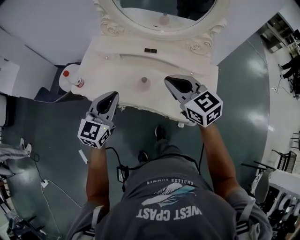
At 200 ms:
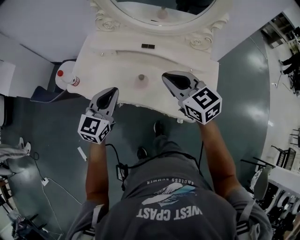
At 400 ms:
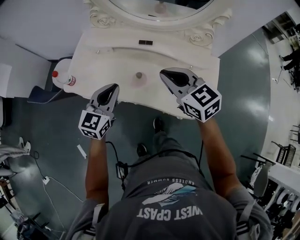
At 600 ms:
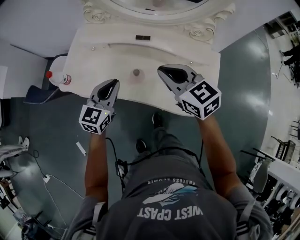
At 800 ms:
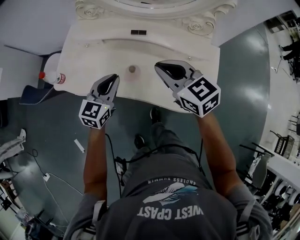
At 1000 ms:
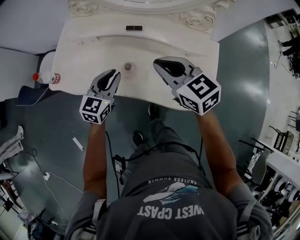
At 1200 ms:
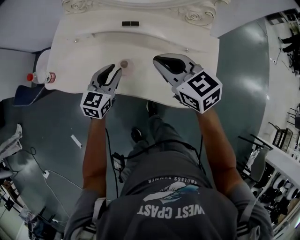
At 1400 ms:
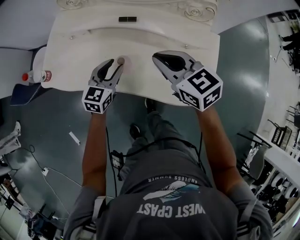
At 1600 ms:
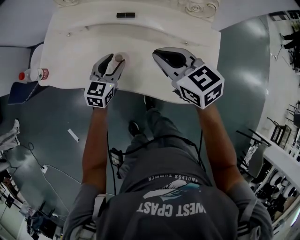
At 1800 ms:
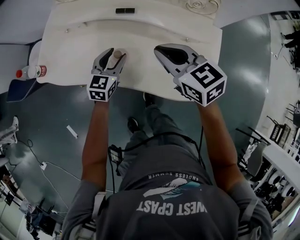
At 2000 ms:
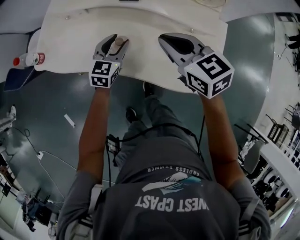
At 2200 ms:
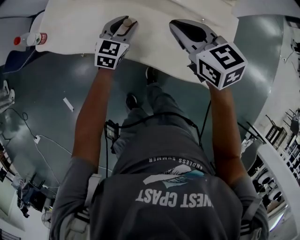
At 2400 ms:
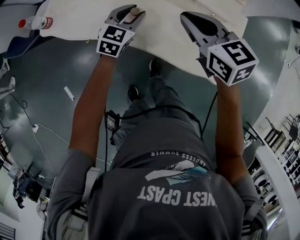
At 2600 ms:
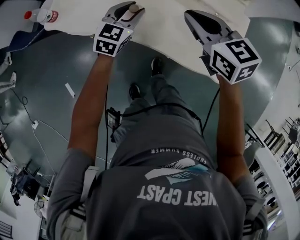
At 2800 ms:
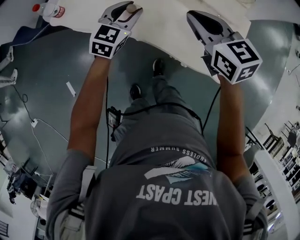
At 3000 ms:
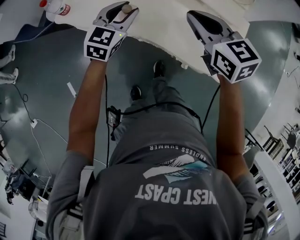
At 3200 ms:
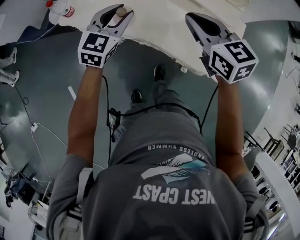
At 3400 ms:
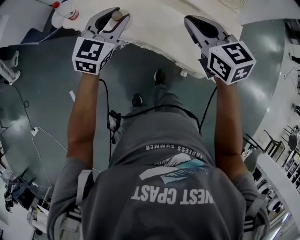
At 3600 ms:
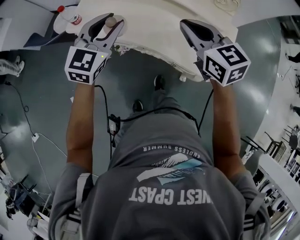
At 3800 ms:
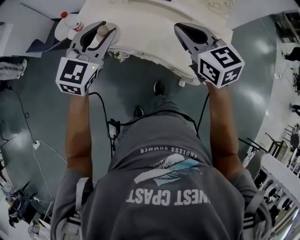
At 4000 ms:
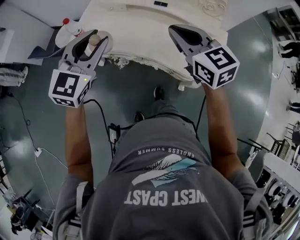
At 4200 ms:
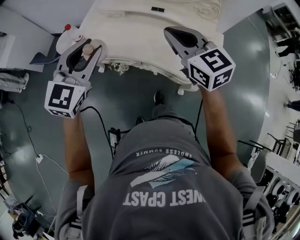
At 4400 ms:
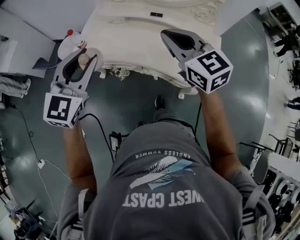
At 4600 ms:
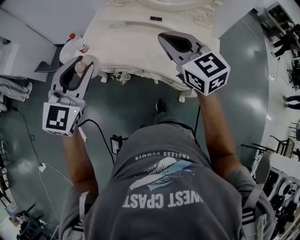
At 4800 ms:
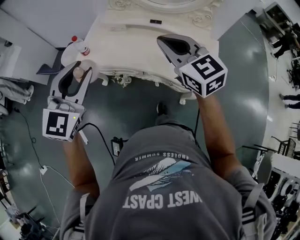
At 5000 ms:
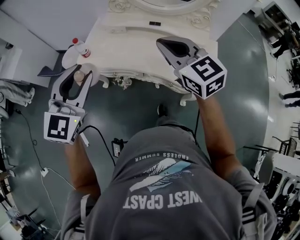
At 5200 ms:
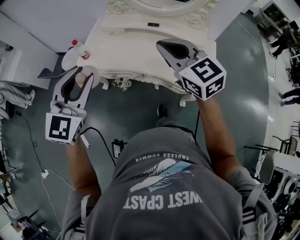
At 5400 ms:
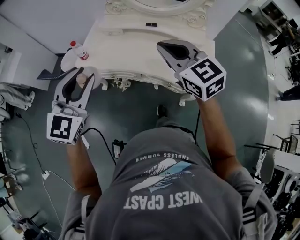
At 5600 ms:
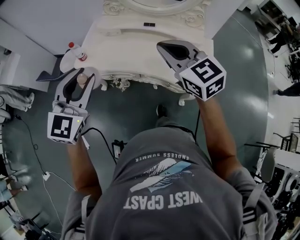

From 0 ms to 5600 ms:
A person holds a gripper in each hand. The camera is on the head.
From 0 ms to 1400 ms: The right gripper shifts approximately 10 cm downward and to the right; the left gripper shifts roughly 25 cm downward, to the right and forward, and opens its fingers.
From 1400 ms to 2800 ms: The grippers stay close to where they were, moving slightly.
From 2800 ms to 4200 ms: The left gripper shifts about 35 cm upward, to the left and backward. The right gripper travels upward, to the left and backward by about 20 cm.
From 4200 ms to 5600 ms: The left gripper goes some 5 cm backward, while the right gripper changes place by about 5 cm.

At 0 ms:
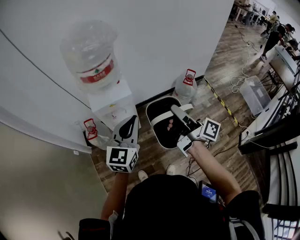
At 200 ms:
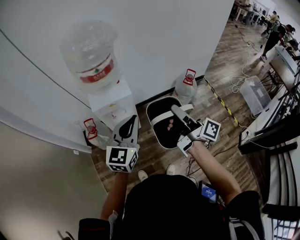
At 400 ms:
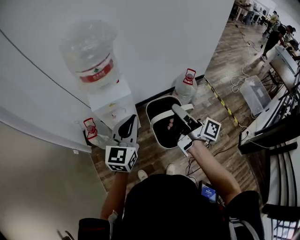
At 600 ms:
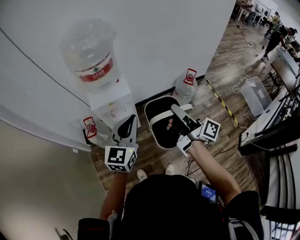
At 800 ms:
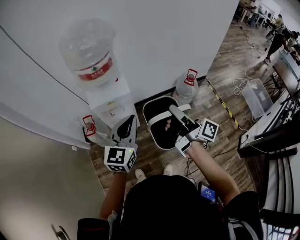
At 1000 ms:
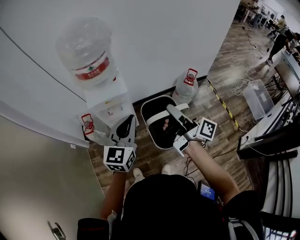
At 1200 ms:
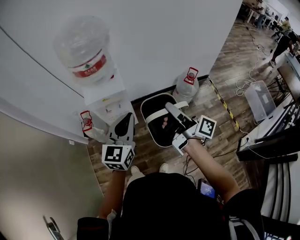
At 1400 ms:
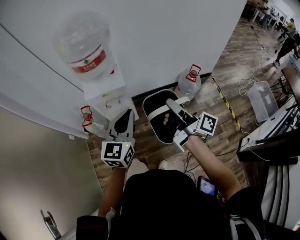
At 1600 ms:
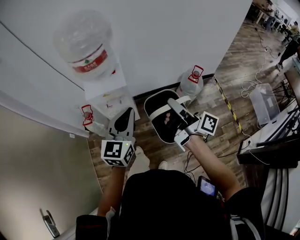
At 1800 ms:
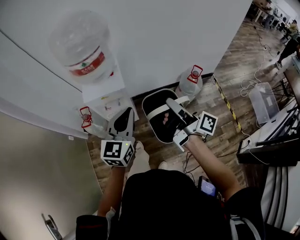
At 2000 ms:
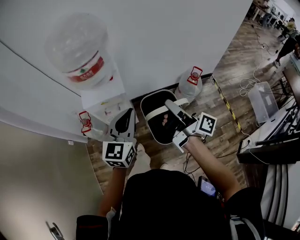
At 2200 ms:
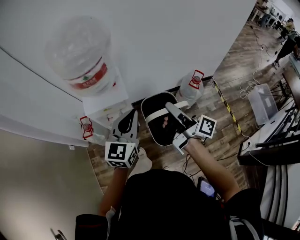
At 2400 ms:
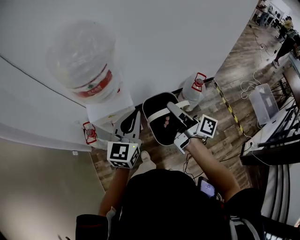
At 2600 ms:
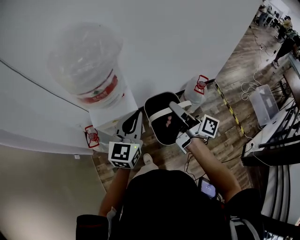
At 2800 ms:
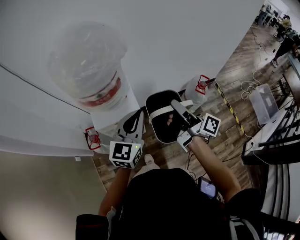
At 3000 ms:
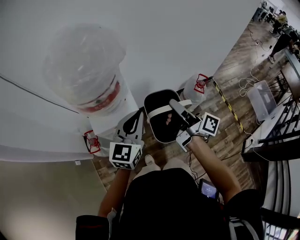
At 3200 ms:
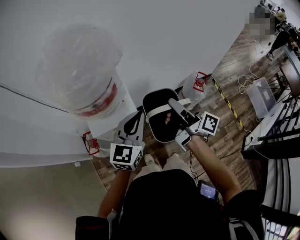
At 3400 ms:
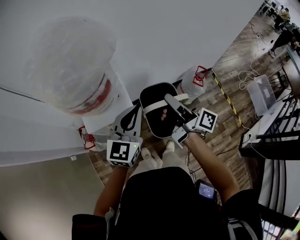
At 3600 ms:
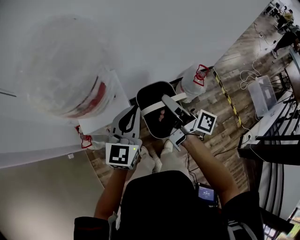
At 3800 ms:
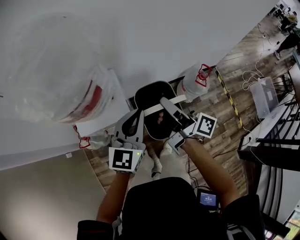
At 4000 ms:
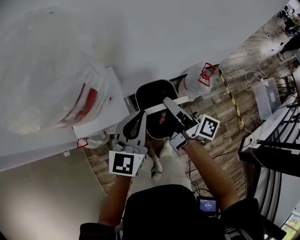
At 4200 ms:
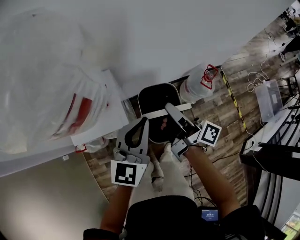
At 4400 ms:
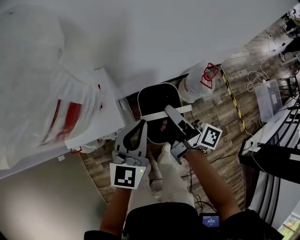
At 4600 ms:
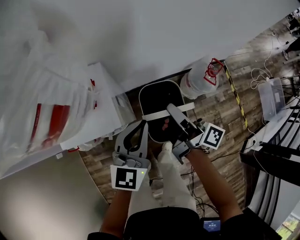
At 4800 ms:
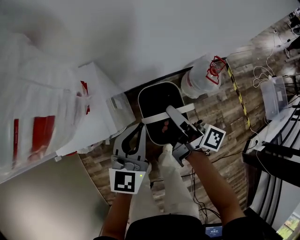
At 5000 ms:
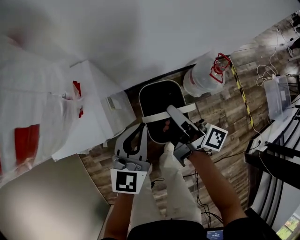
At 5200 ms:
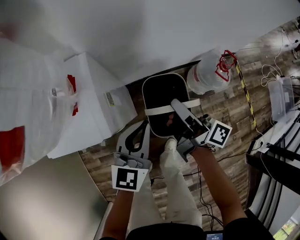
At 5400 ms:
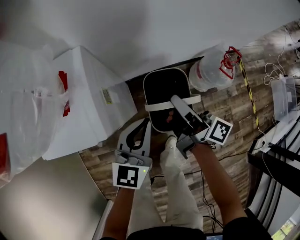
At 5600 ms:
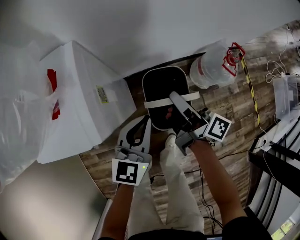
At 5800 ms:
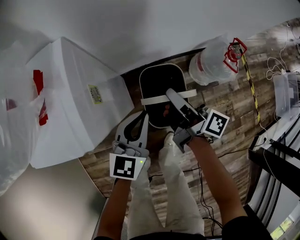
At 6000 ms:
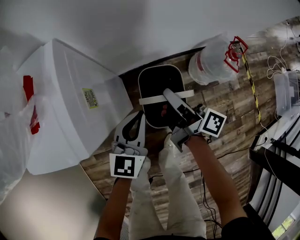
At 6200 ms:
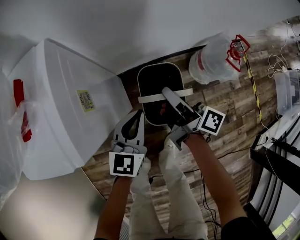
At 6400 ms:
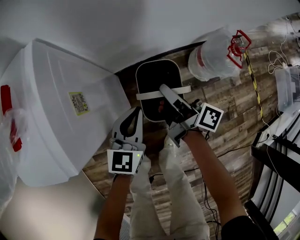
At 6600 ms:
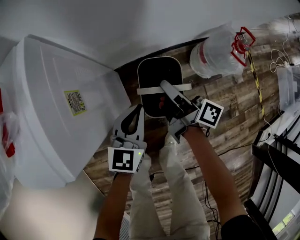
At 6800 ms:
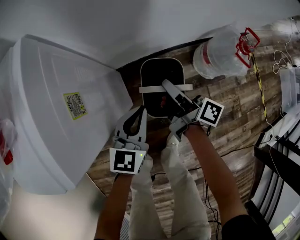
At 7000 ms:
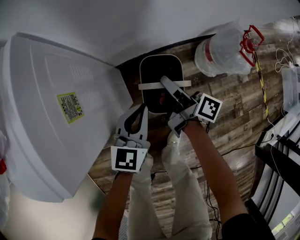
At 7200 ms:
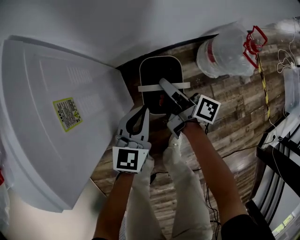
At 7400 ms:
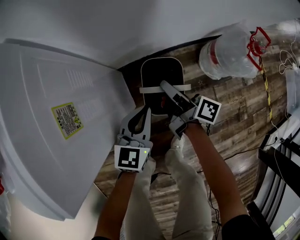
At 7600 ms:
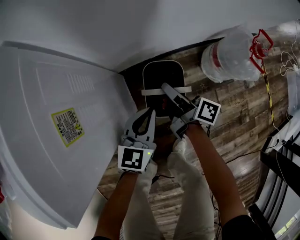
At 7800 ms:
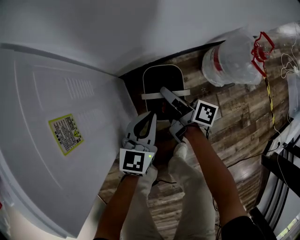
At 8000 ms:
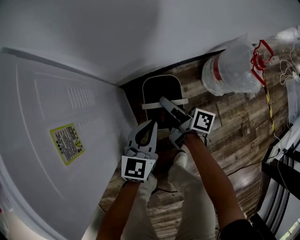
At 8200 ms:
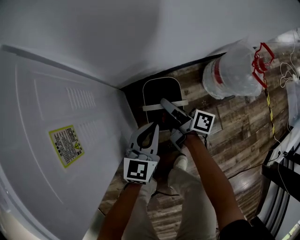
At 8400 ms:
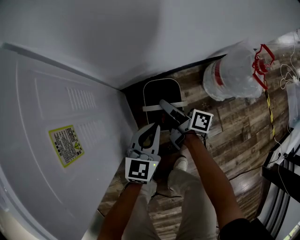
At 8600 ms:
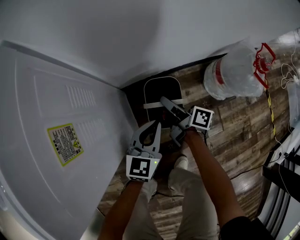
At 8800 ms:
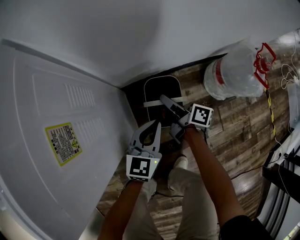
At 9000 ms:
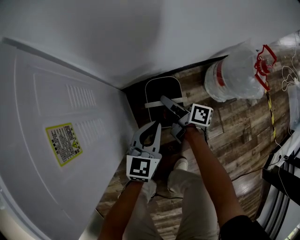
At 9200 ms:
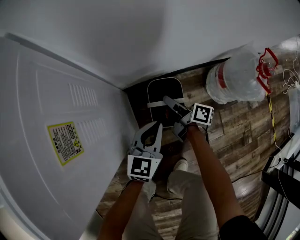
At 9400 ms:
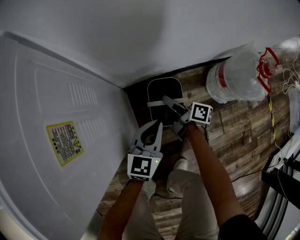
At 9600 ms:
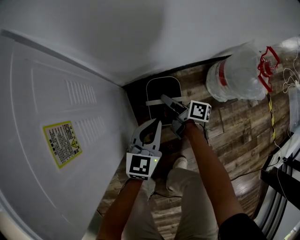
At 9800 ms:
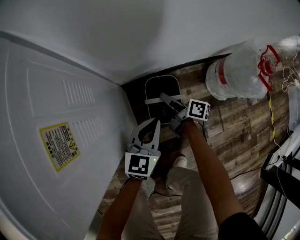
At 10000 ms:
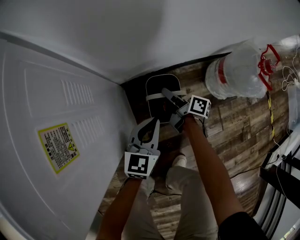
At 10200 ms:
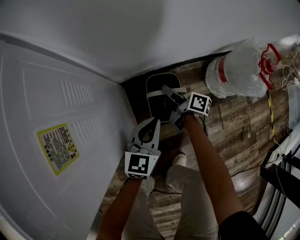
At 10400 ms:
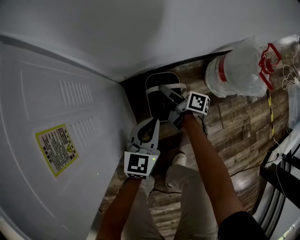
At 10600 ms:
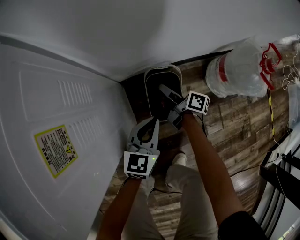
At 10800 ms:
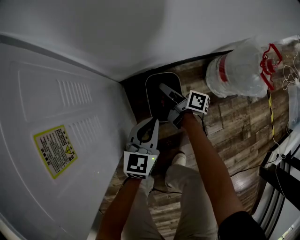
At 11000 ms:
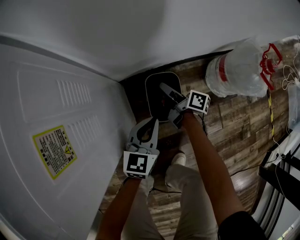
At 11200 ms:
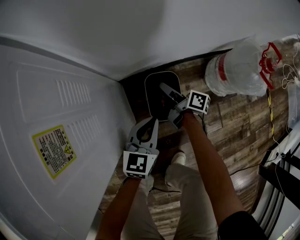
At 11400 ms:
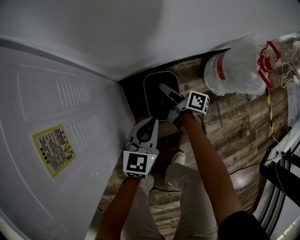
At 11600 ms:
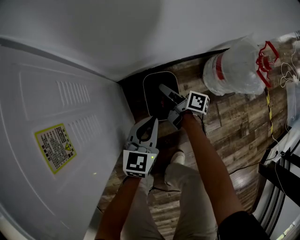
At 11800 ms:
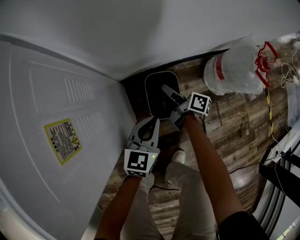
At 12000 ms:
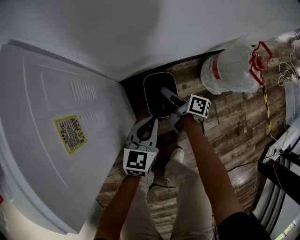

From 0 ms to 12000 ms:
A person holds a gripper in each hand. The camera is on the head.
From 0 ms to 1600 ms: The grippers both shift to the right by approximately 5 cm.
From 1600 ms to 3000 ms: The right gripper travels forward and to the left by some 20 cm. The left gripper goes about 20 cm forward.
From 3000 ms to 4400 ms: The right gripper shifts approximately 15 cm downward and forward, while the left gripper heads downward, to the right and forward, covering some 15 cm.
From 4400 ms to 6000 ms: The grippers both shift downward by some 30 cm.
From 6000 ms to 7600 ms: Both grippers travel together downward, some 20 cm.
From 7600 ms to 9000 ms: The left gripper travels downward by about 5 cm. The right gripper heads downward, covering some 10 cm.
From 9000 ms to 10400 ms: The right gripper travels downward by some 5 cm.
From 10400 ms to 12000 ms: The right gripper travels upward by some 5 cm.

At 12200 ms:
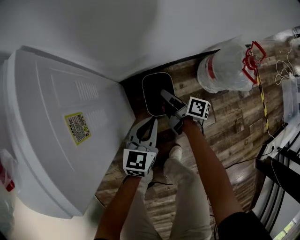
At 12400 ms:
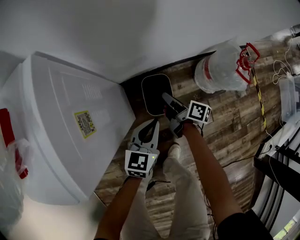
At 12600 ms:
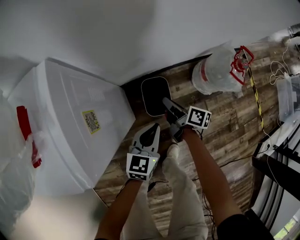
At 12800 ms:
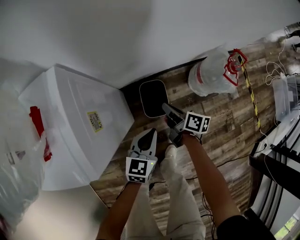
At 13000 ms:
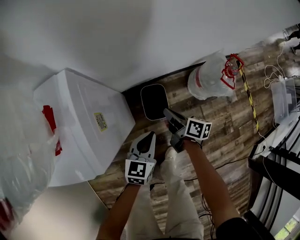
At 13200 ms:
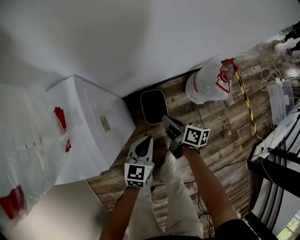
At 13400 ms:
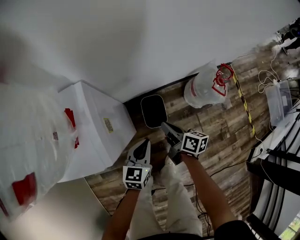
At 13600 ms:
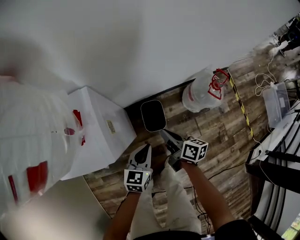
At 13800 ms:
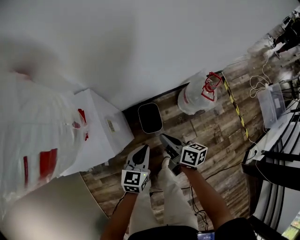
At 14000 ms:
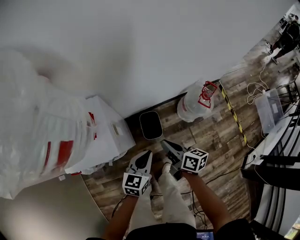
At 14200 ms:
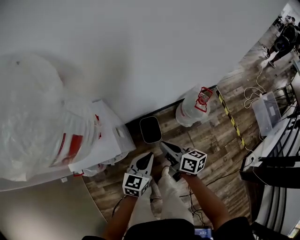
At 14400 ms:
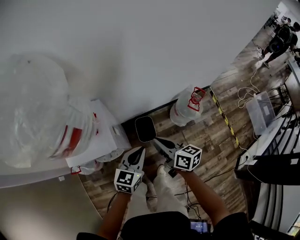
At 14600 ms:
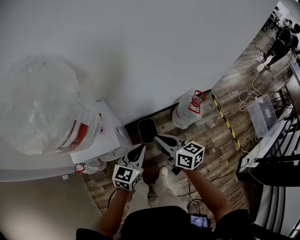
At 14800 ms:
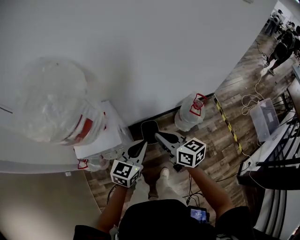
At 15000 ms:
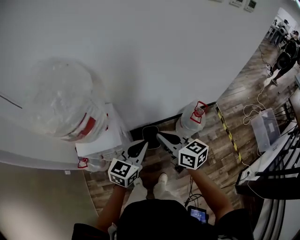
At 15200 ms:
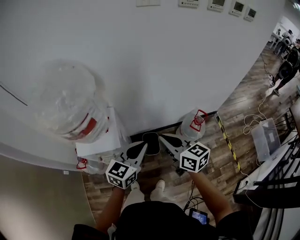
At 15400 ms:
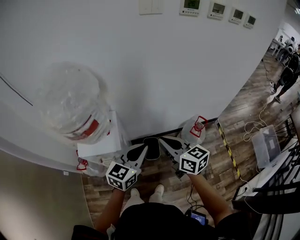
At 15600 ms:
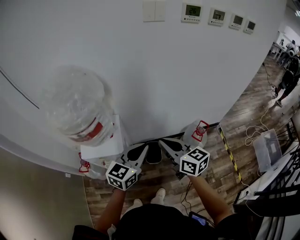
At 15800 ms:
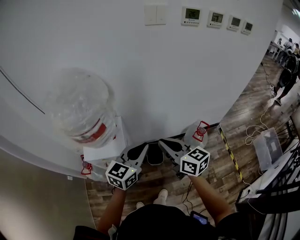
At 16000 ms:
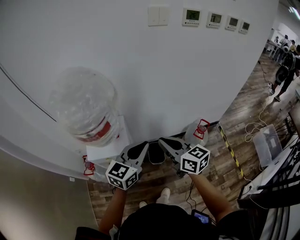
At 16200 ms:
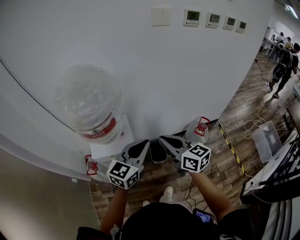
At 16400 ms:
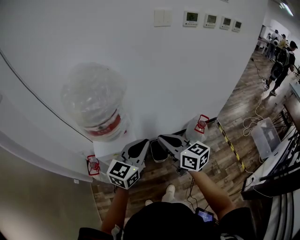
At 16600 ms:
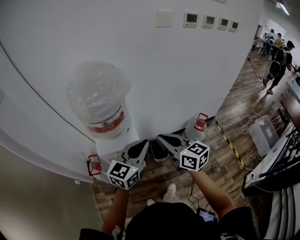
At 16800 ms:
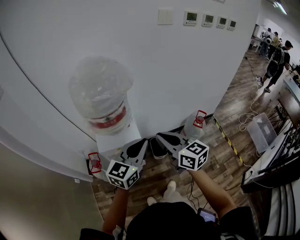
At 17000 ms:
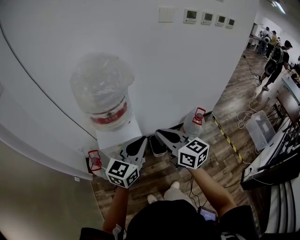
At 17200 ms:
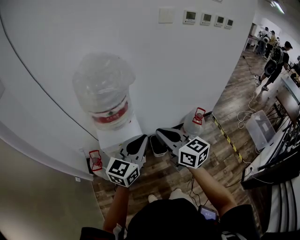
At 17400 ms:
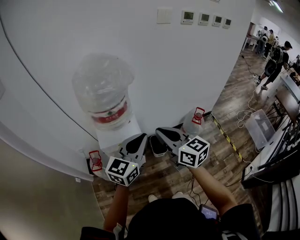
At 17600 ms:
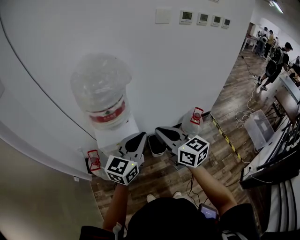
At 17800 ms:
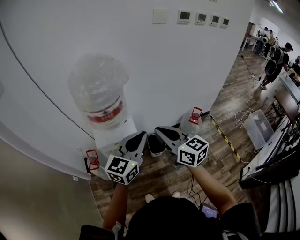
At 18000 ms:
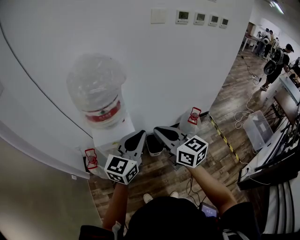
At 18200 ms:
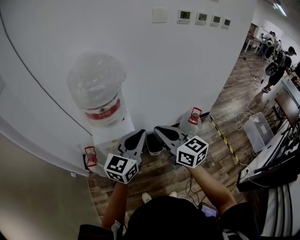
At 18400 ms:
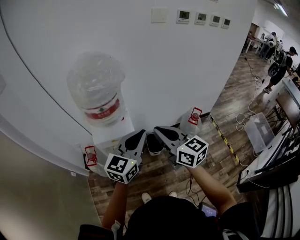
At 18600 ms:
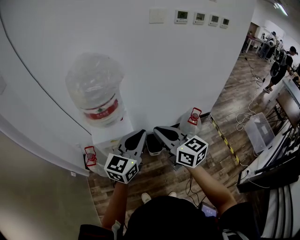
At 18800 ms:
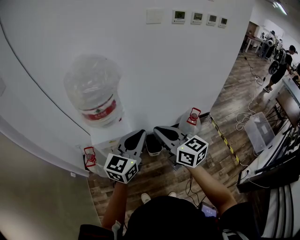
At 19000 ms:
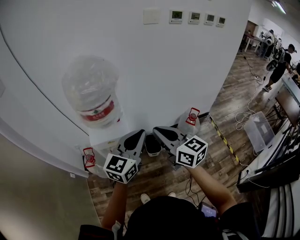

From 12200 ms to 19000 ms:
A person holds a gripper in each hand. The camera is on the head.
From 12200 ms to 13600 ms: Both grippers move upward, some 20 cm.
From 13600 ms to 15000 ms: Both grippers move upward, roughly 35 cm. The right gripper turns by roughly 40 degrees.
From 15000 ms to 16200 ms: The grippers both shift upward and to the left by roughly 10 cm.
From 16200 ms to 17600 ms: The grippers both shift backward and to the left by approximately 10 cm.
From 17600 ms to 19000 ms: The grippers both shift to the right by about 5 cm.
